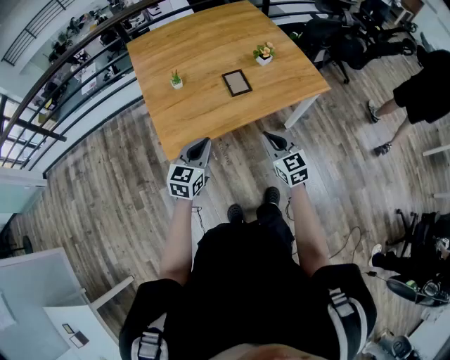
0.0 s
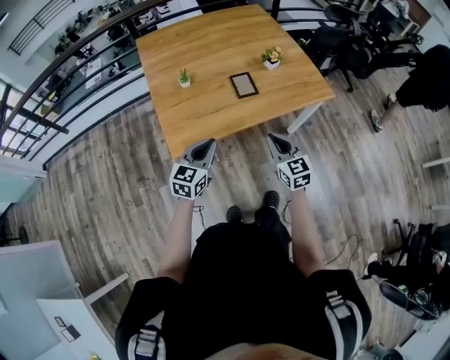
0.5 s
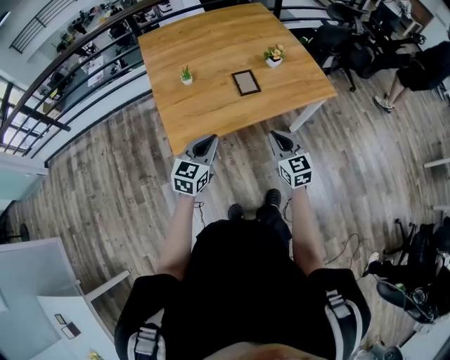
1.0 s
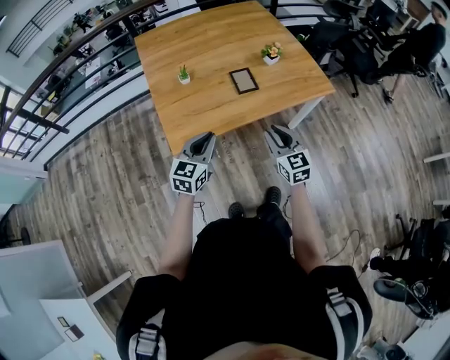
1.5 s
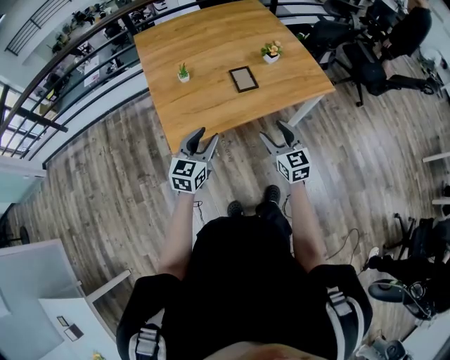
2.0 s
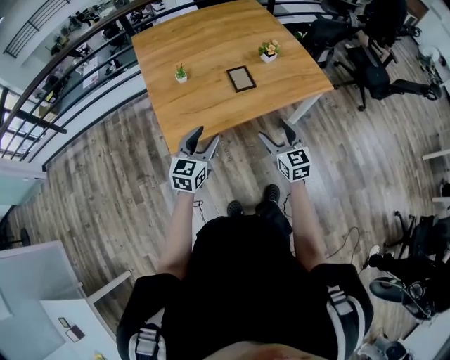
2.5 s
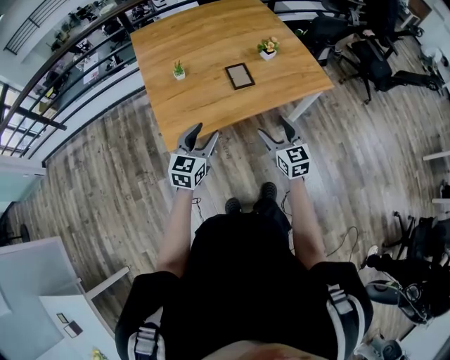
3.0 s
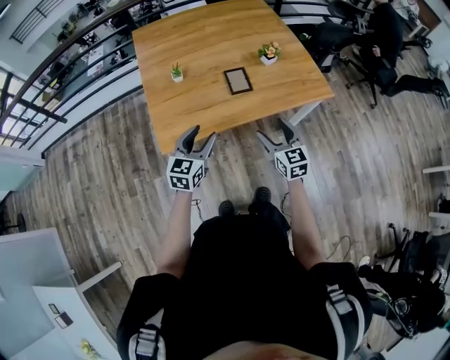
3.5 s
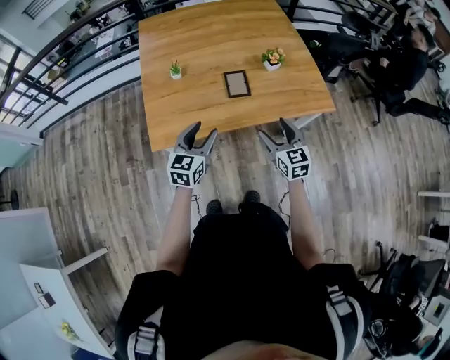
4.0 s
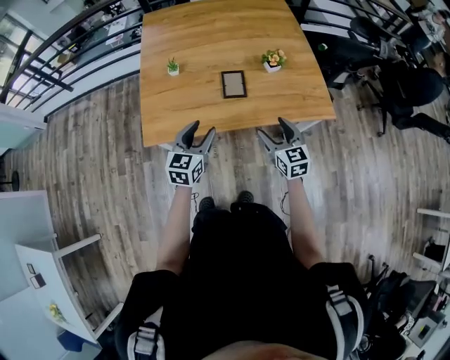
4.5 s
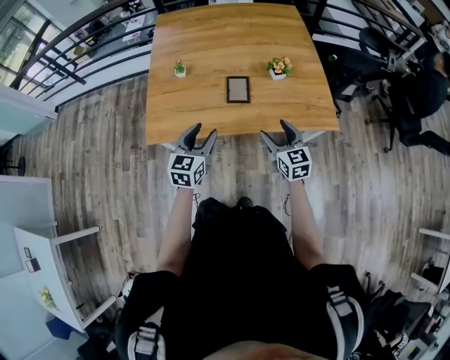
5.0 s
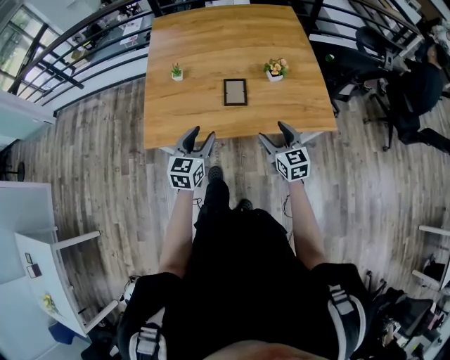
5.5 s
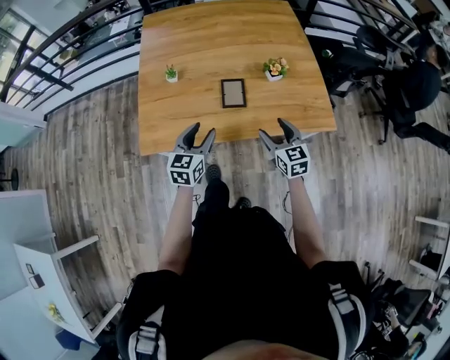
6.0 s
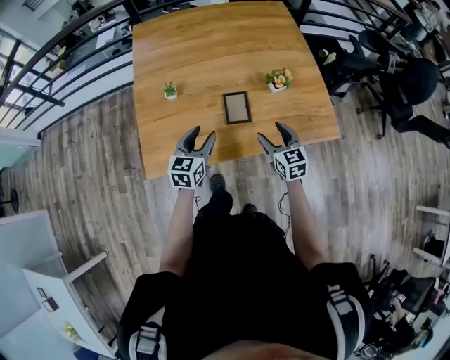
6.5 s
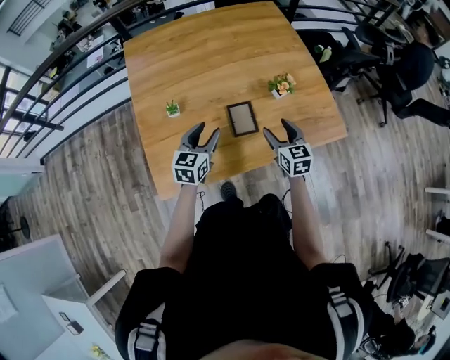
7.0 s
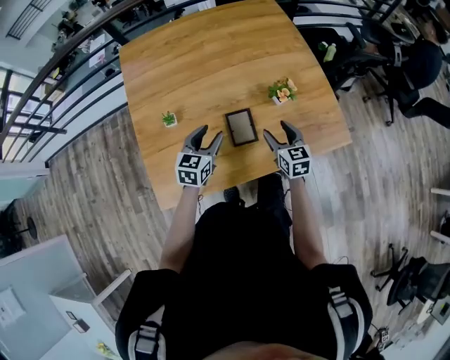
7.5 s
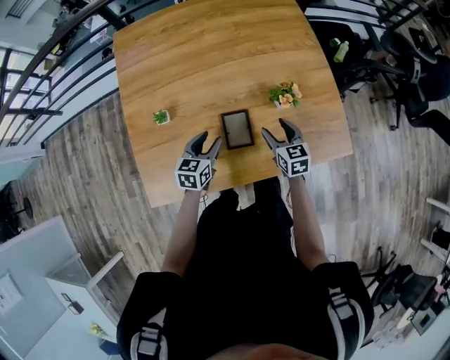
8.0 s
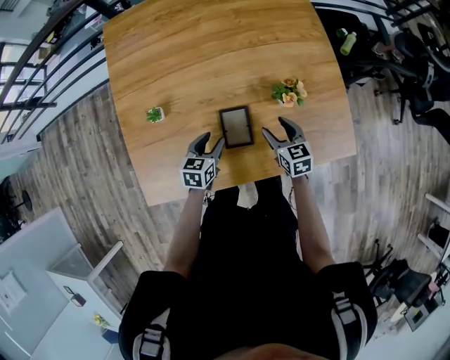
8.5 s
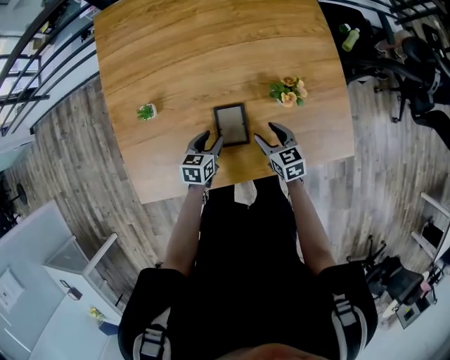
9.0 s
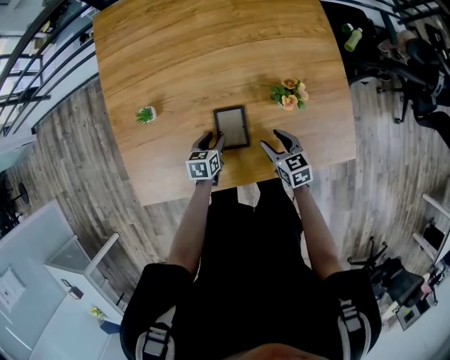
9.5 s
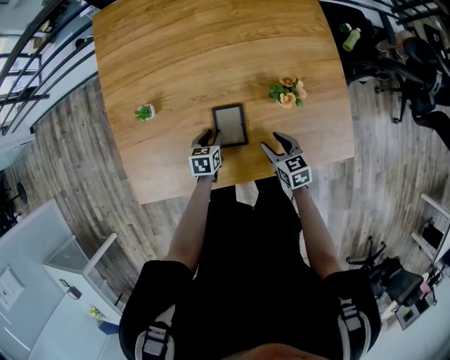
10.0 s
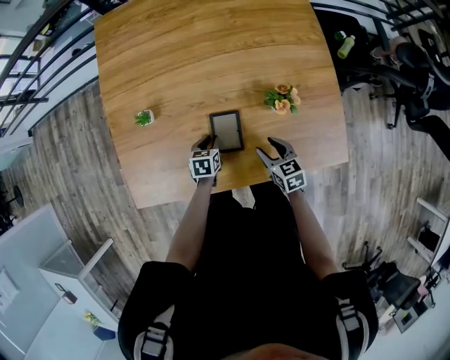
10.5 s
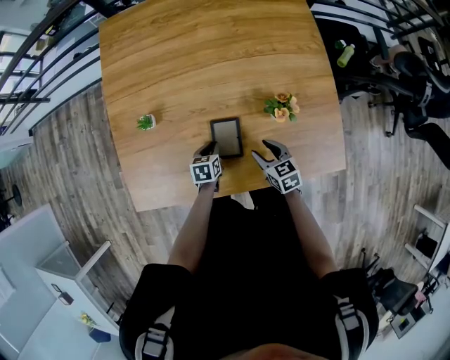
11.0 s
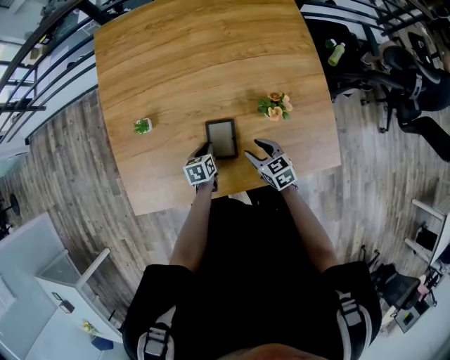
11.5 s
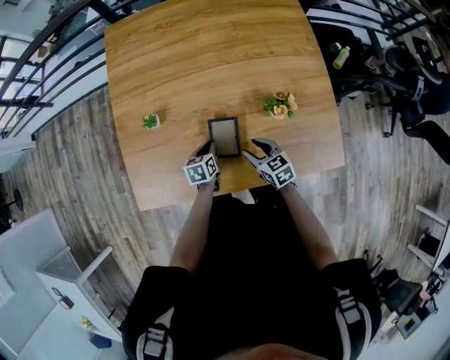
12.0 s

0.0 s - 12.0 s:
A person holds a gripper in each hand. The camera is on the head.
0.0 s - 2.0 s: The left gripper opens; the right gripper opens its fingers.
2.0 s - 4.0 s: Both grippers travel together to the right and forward, approximately 10 cm.
4.0 s - 6.0 s: The right gripper is displaced forward and to the right by roughly 10 cm, while the left gripper travels forward by approximately 5 cm.
6.0 s - 8.0 s: The grippers both shift forward and downward by approximately 25 cm.
8.0 s - 10.0 s: The left gripper travels downward by roughly 15 cm, and swivels some 20 degrees. Meanwhile the right gripper moves downward, approximately 10 cm.
10.0 s - 12.0 s: The right gripper travels to the left by about 5 cm; the left gripper closes.

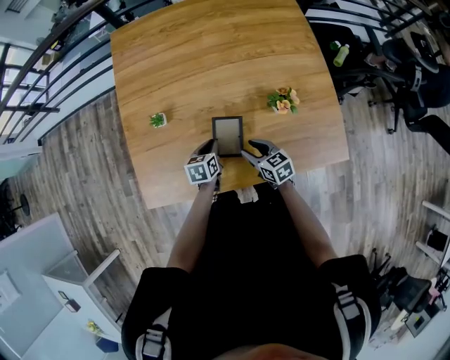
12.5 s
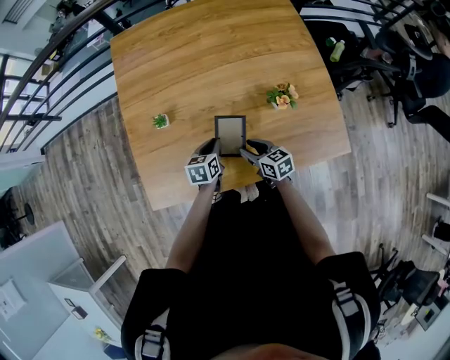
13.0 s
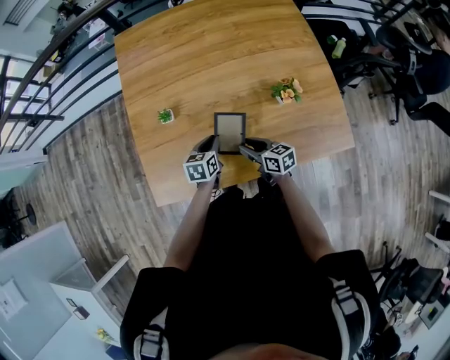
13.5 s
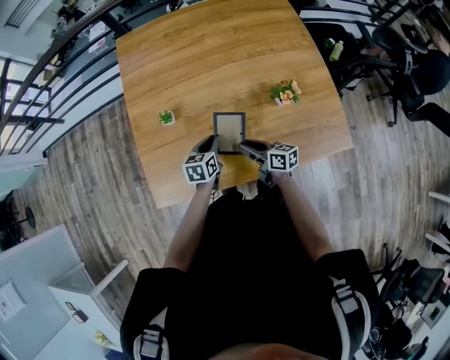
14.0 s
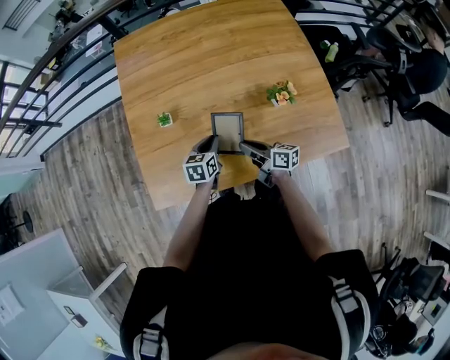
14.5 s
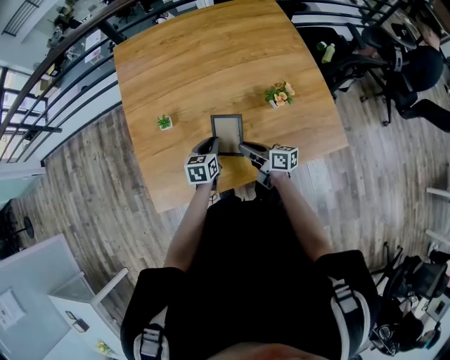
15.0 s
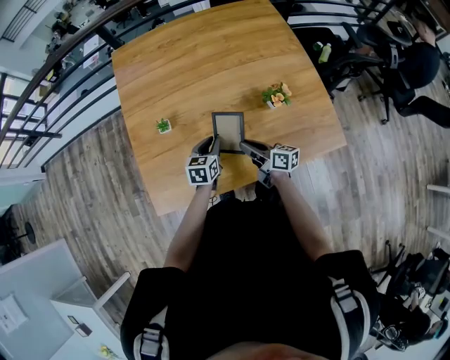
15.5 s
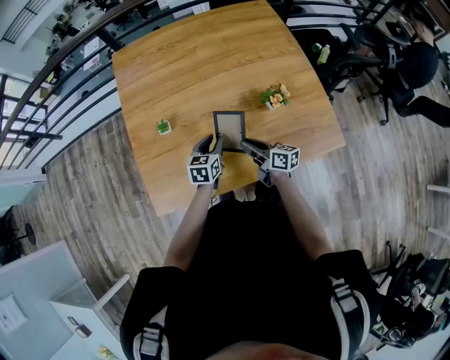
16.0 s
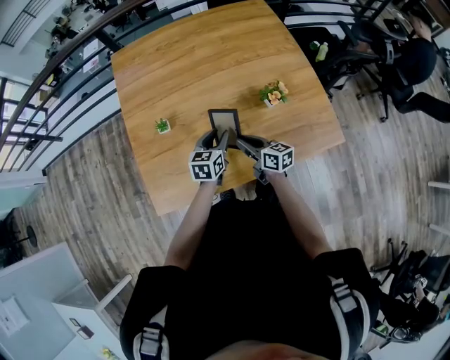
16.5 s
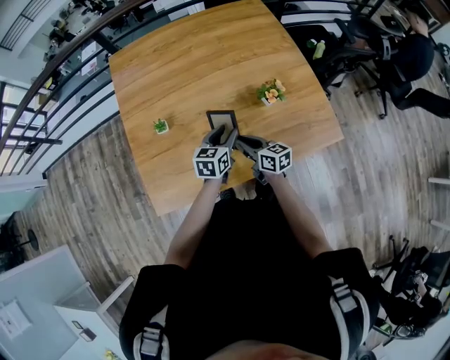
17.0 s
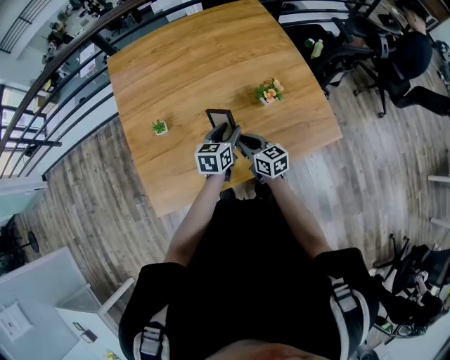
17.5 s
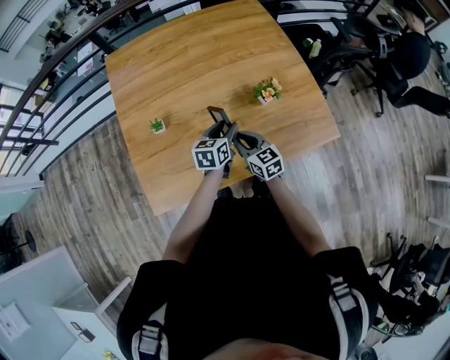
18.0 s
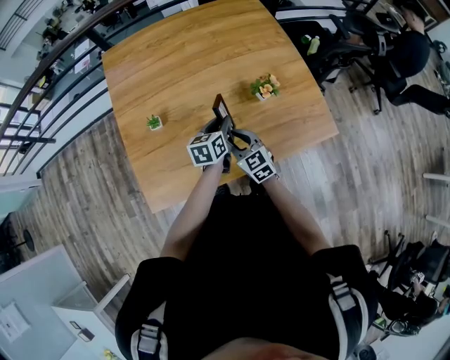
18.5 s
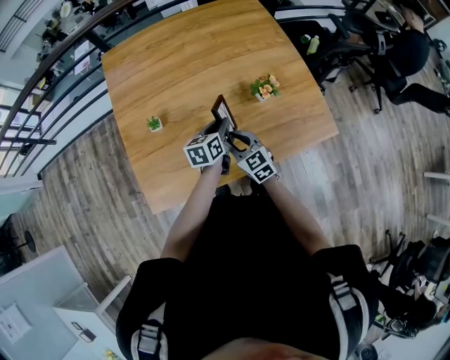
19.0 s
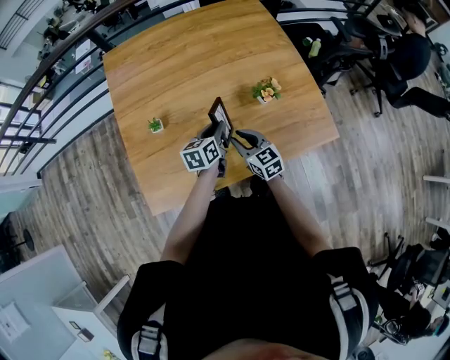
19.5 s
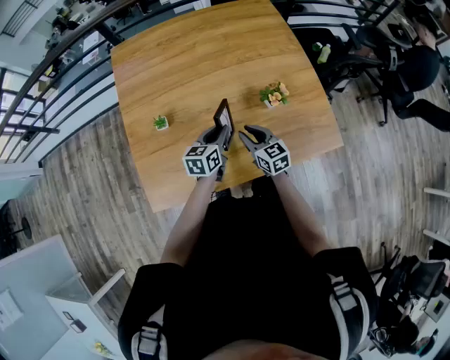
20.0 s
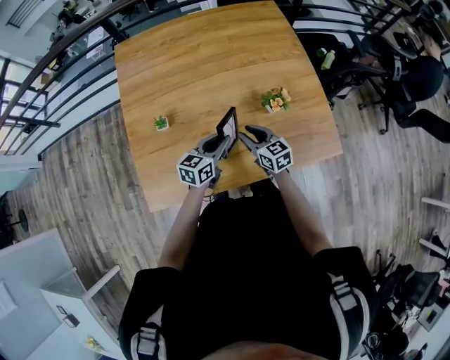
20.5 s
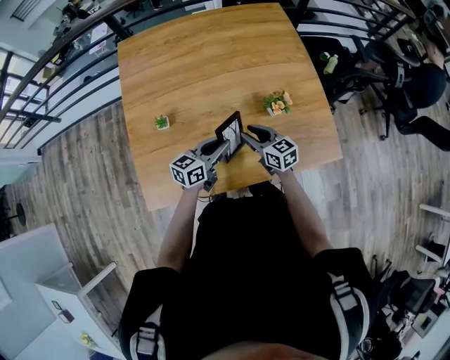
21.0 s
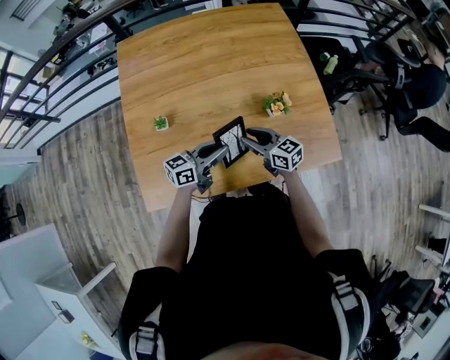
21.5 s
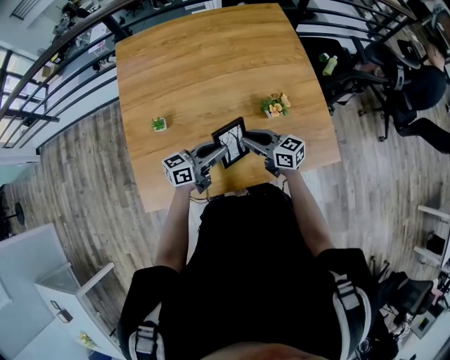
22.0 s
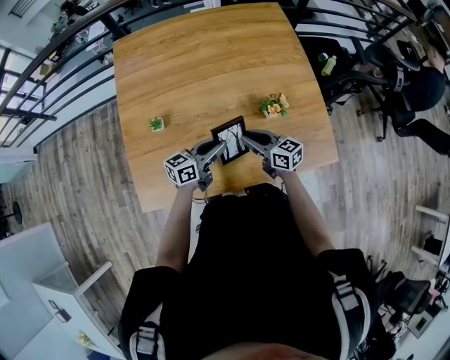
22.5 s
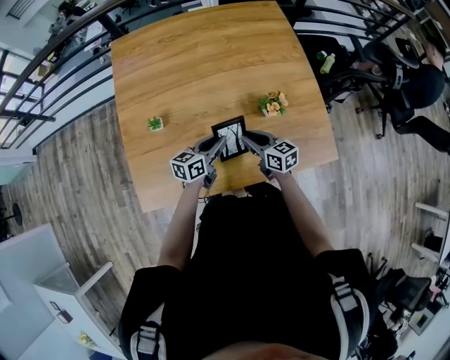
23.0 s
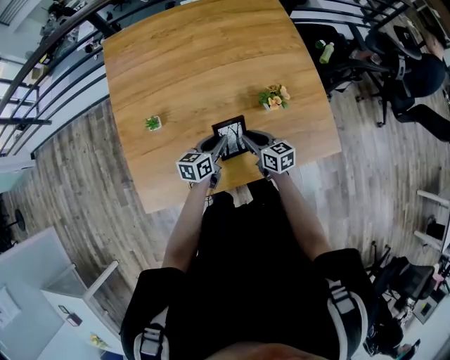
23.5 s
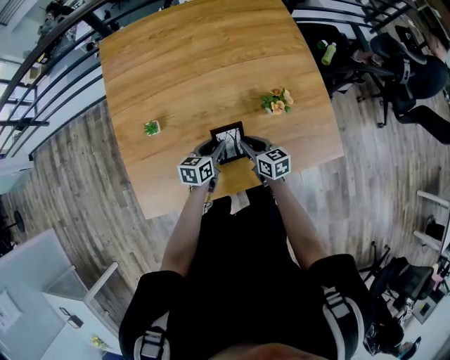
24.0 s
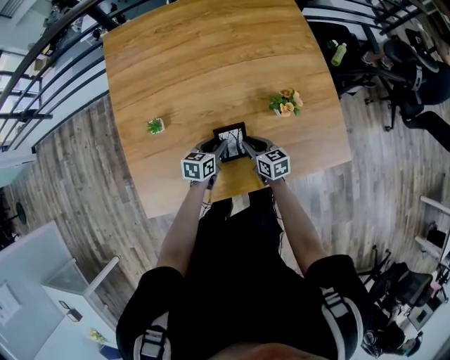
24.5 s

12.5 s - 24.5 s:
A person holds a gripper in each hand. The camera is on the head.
12.5 s - 14.5 s: The left gripper travels upward by roughly 5 cm. The right gripper ends up some 5 cm from where it was, and turns by some 40 degrees.
14.5 s - 16.5 s: The left gripper is displaced upward and to the right by roughly 5 cm, and opens.
16.5 s - 18.5 s: The right gripper rolls counterclockwise, seen from behind, by about 40 degrees.
18.5 s - 20.5 s: The right gripper moves forward, approximately 5 cm.
22.5 s - 24.5 s: The grippers both shift downward by some 15 cm. The right gripper changes its angle by some 20 degrees, while the left gripper tips its fingers downward by some 30 degrees.

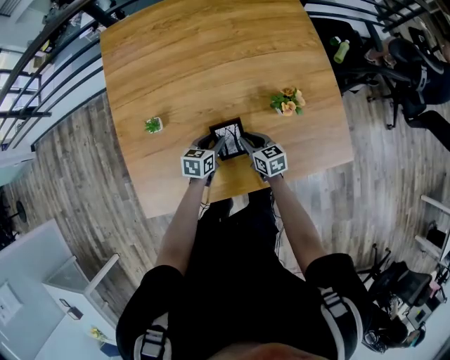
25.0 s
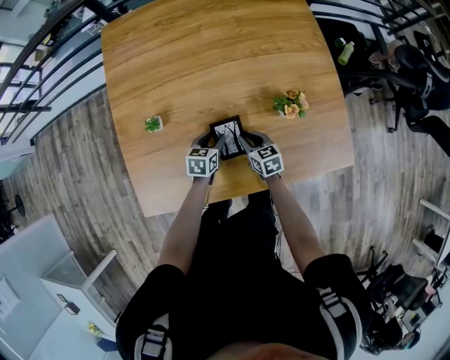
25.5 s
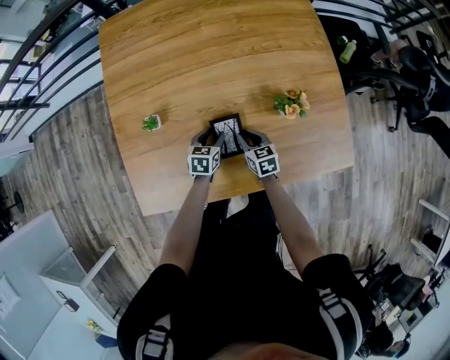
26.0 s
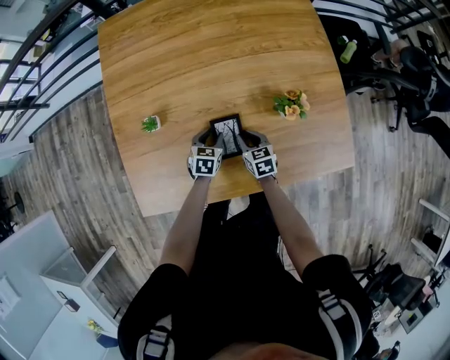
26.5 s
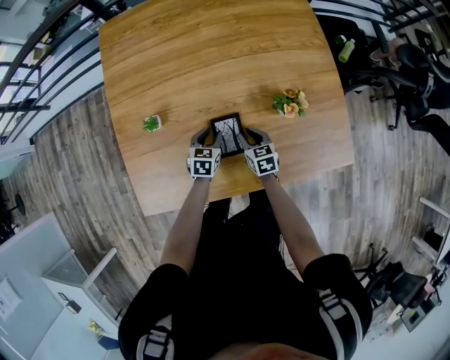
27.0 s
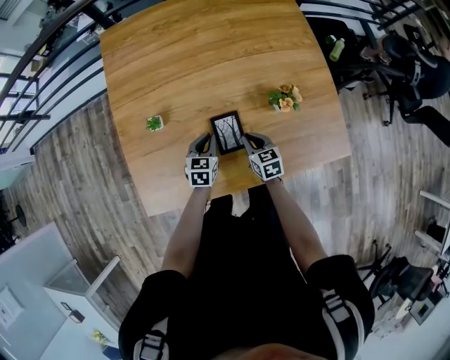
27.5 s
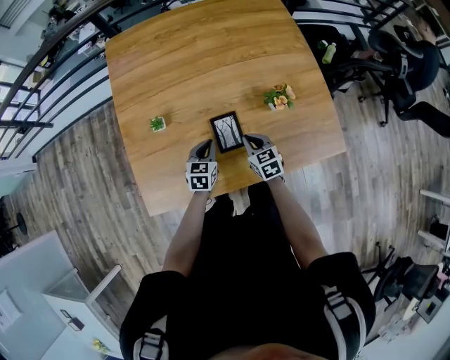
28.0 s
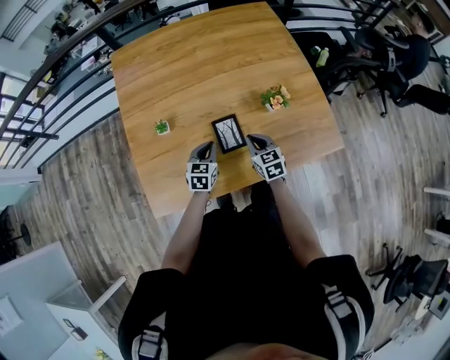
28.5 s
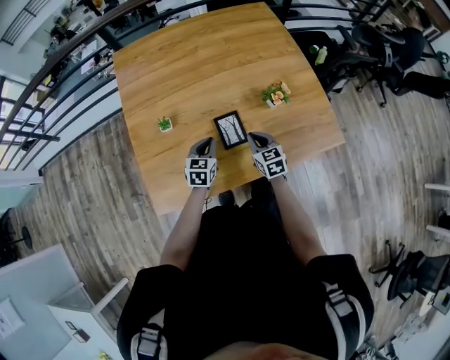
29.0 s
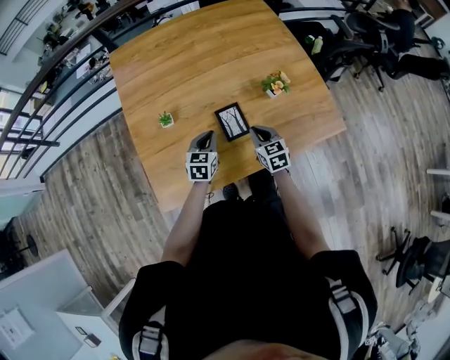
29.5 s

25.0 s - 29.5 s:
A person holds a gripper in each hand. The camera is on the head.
25.0 s - 27.0 s: There are only small adjustments of the grippers.
27.0 s - 29.5 s: The two grippers go about 15 cm upward and backward. The left gripper closes.
